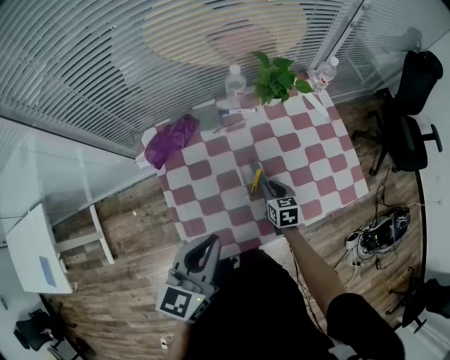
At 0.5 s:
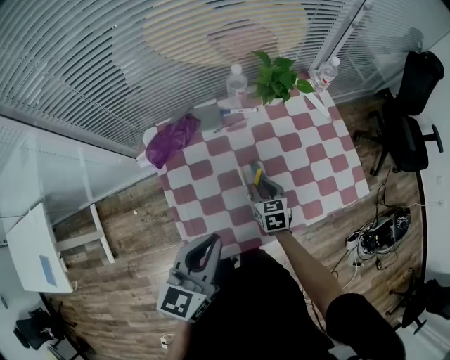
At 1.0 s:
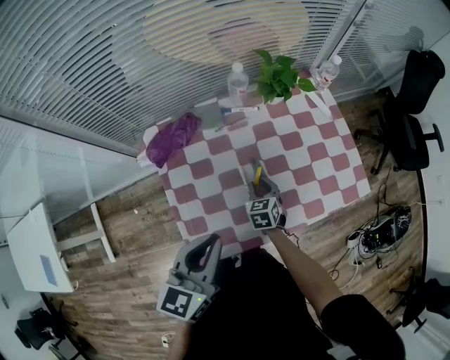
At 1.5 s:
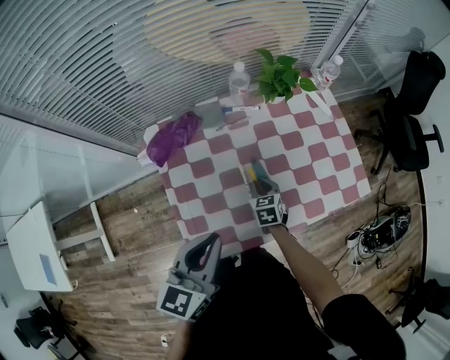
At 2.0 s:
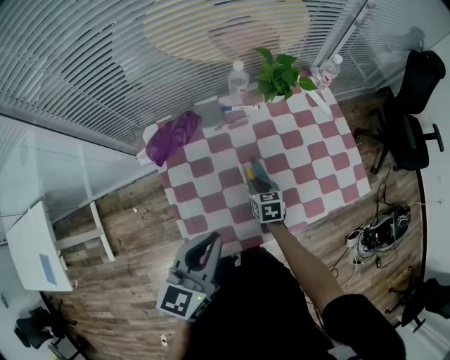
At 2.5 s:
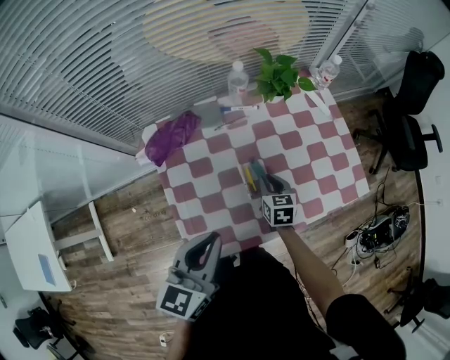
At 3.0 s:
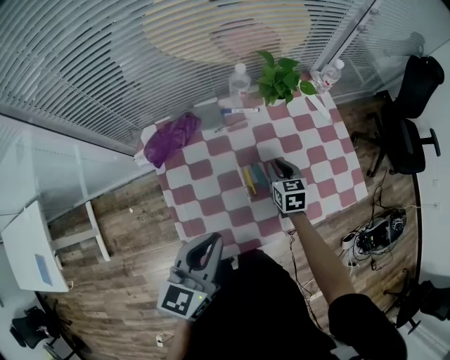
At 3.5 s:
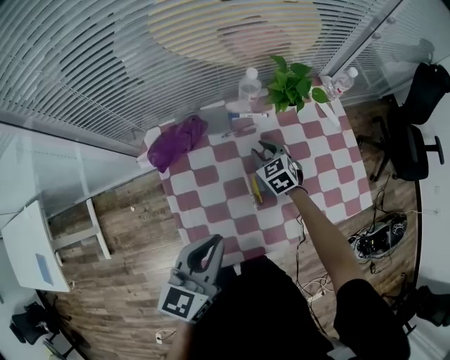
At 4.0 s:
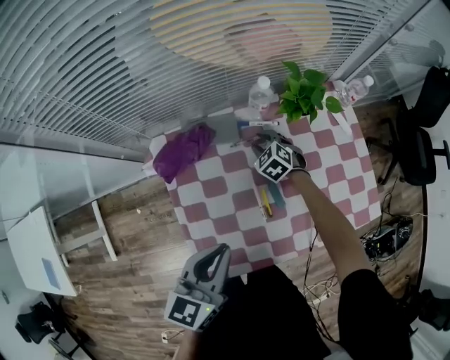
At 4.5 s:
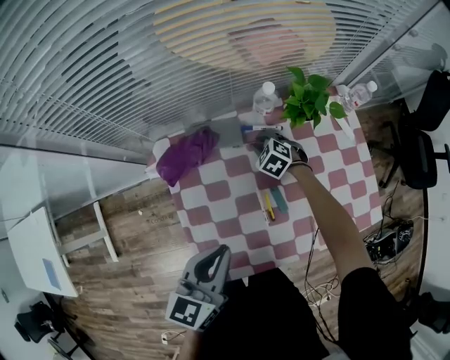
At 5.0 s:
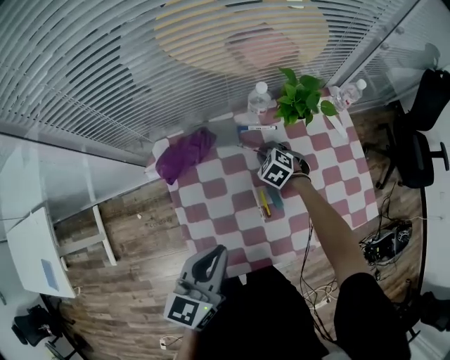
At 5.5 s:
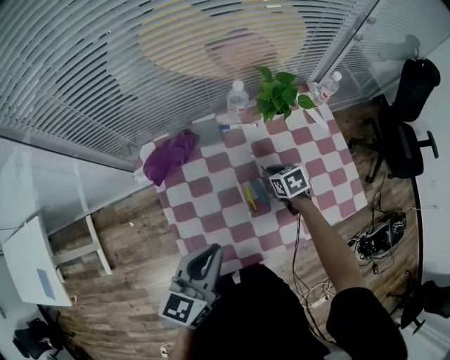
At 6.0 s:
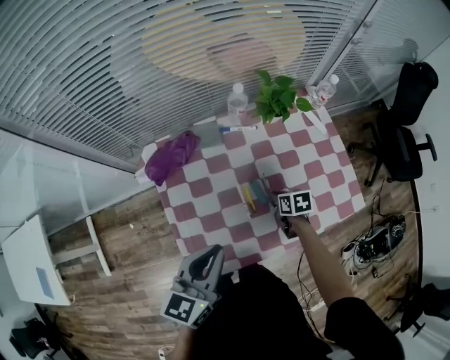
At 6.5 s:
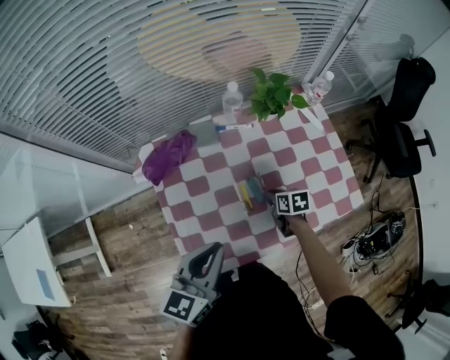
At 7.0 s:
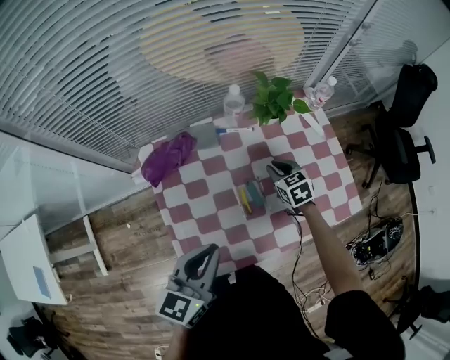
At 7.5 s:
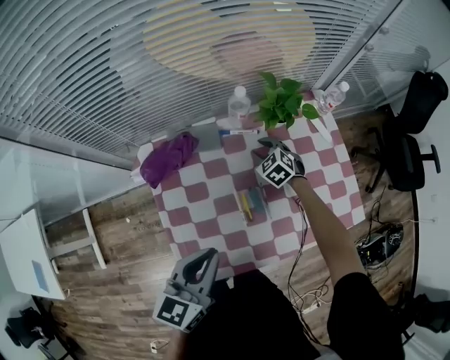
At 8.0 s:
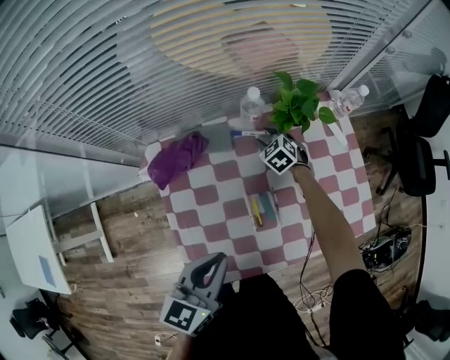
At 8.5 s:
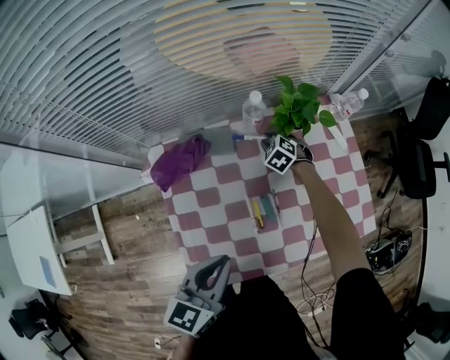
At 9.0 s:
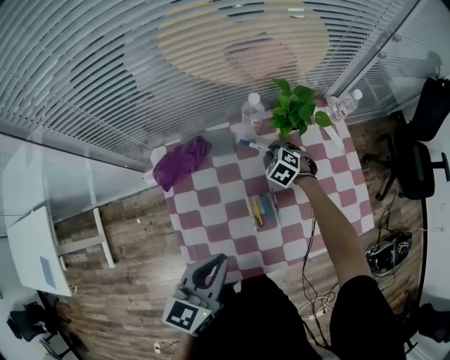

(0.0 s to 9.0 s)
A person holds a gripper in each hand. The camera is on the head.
0.0 s - 2.0 s: The right gripper heads to the left, covering approximately 5 cm.
2.0 s - 4.5 s: The right gripper shifts roughly 20 cm forward, and rolls counterclockwise, seen from behind, by about 50 degrees. The left gripper goes about 10 cm forward.
4.5 s - 7.0 s: The left gripper heads backward, covering roughly 5 cm. Meanwhile the right gripper shifts approximately 20 cm to the right, backward and upward, and swivels approximately 40 degrees.
7.0 s - 9.0 s: The right gripper goes roughly 15 cm forward, downward and to the left, rotates some 40 degrees, and opens, then closes again.

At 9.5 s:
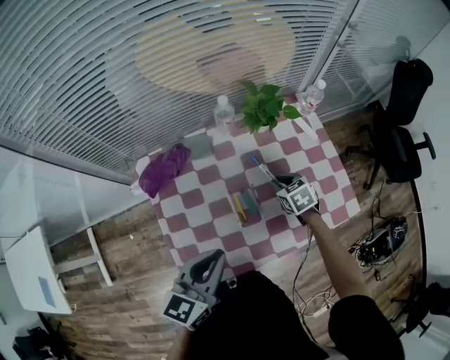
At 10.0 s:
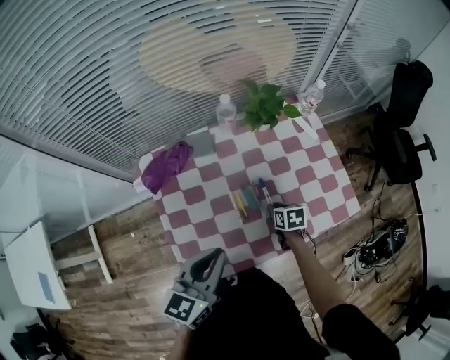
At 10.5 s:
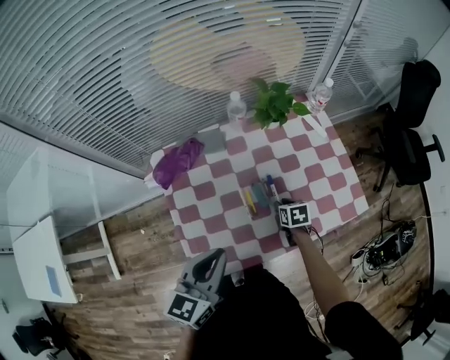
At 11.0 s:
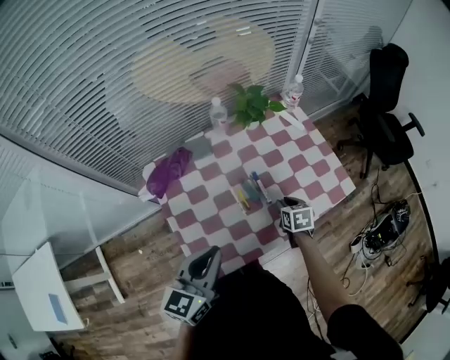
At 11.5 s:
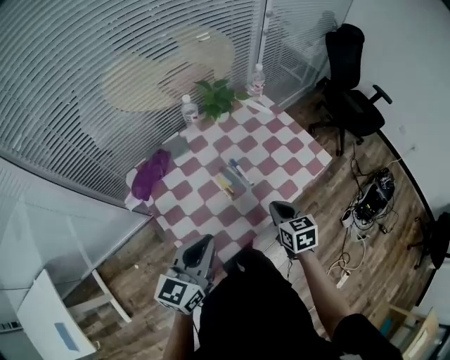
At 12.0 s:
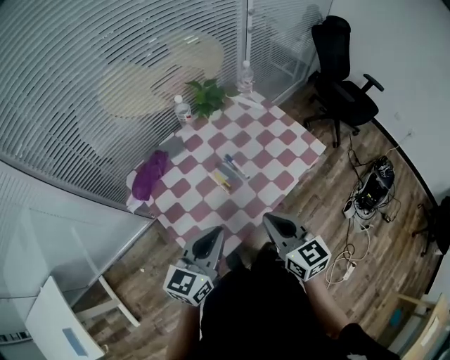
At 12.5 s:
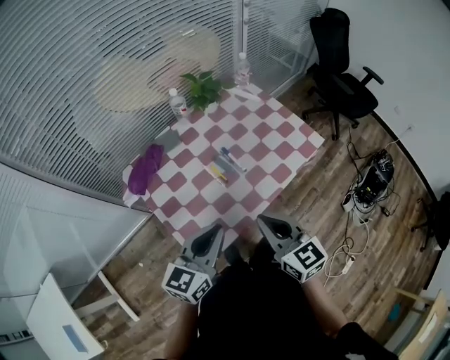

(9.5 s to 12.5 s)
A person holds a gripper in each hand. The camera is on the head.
9.5 s - 11.0 s: The left gripper shifts some 5 cm backward. The right gripper is displaced backward by some 15 cm, and rotates approximately 30 degrees.
11.0 s - 12.5 s: The left gripper goes approximately 5 cm backward. Meanwhile the right gripper is displaced upward and backward by roughly 30 cm, tips its fingers upward by about 40 degrees, and closes up.

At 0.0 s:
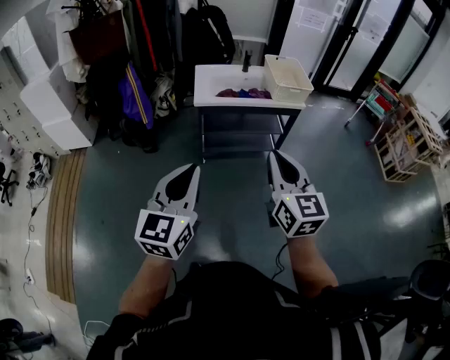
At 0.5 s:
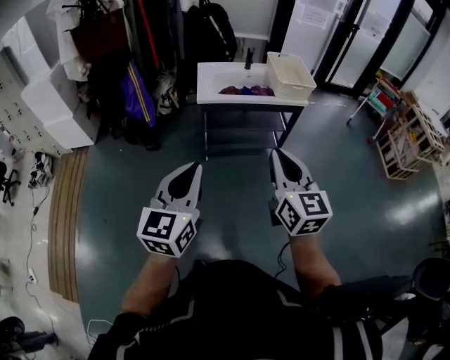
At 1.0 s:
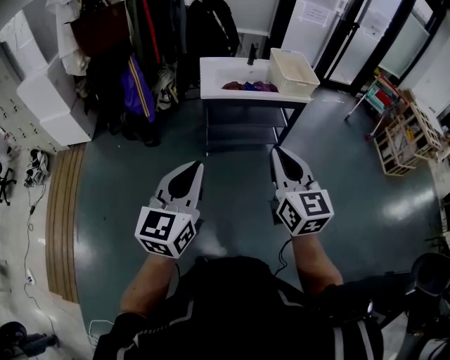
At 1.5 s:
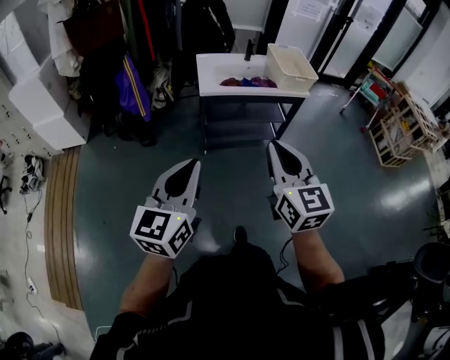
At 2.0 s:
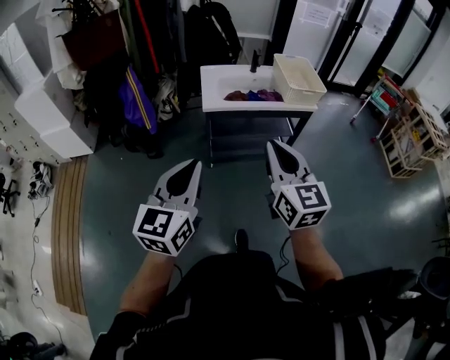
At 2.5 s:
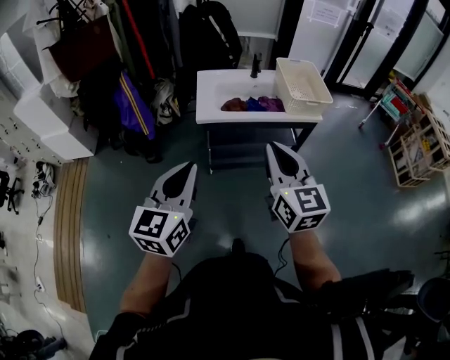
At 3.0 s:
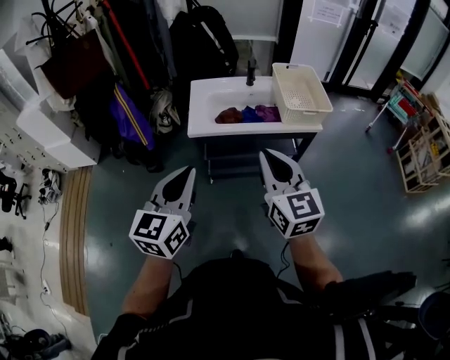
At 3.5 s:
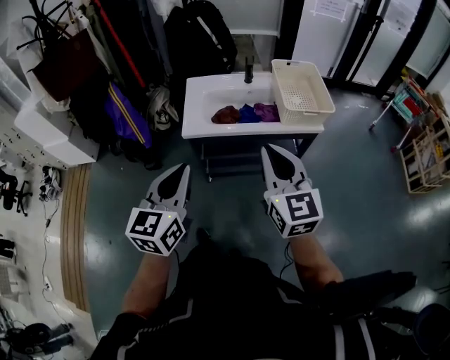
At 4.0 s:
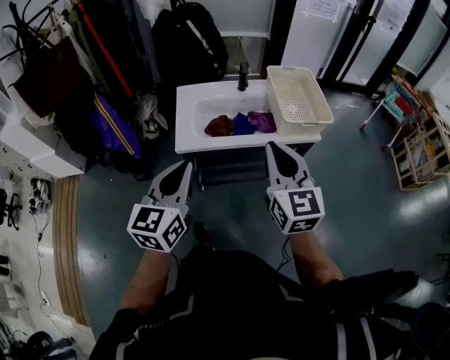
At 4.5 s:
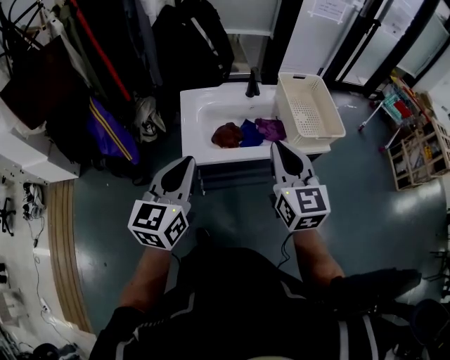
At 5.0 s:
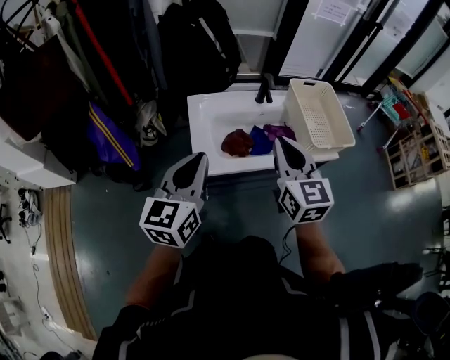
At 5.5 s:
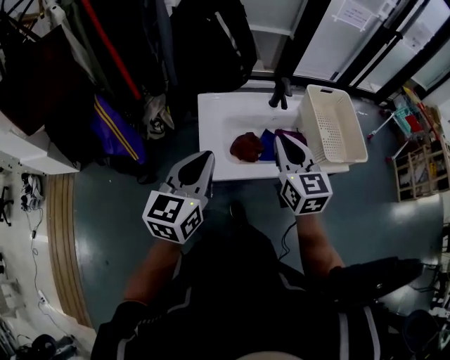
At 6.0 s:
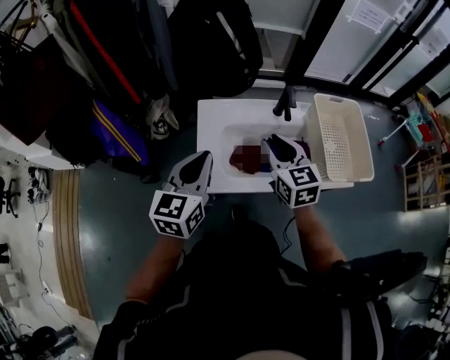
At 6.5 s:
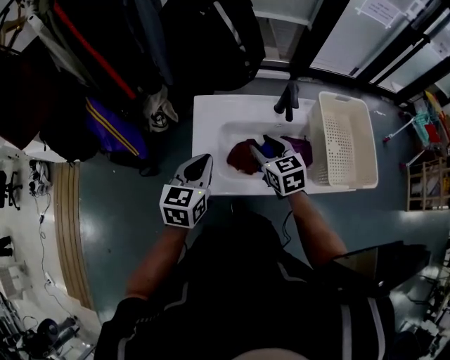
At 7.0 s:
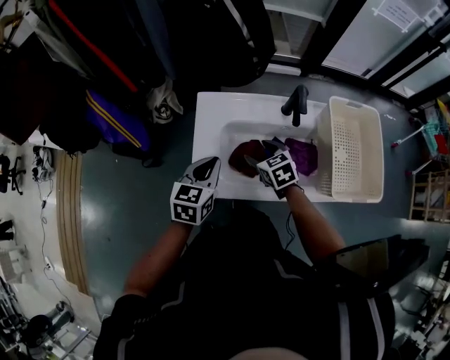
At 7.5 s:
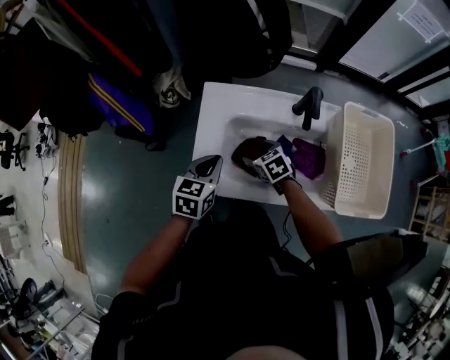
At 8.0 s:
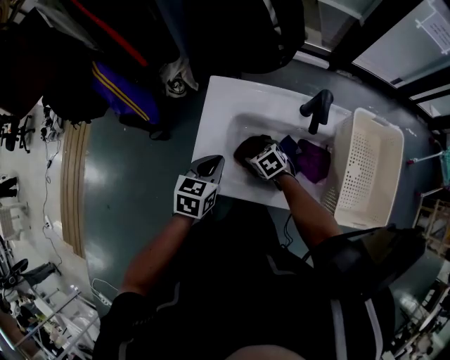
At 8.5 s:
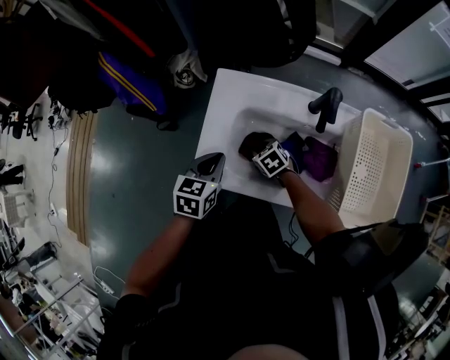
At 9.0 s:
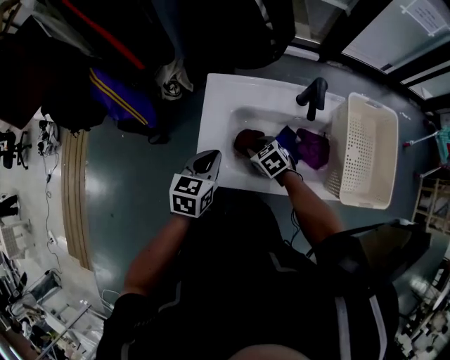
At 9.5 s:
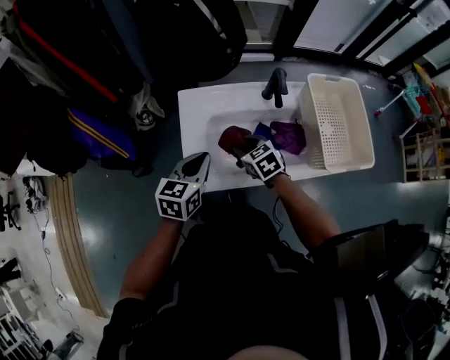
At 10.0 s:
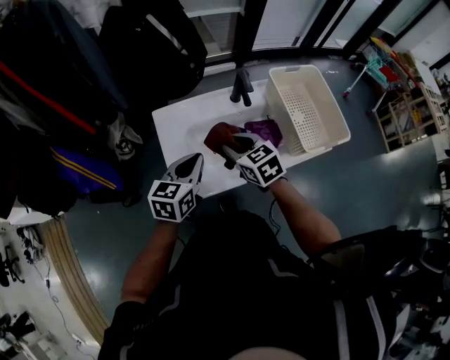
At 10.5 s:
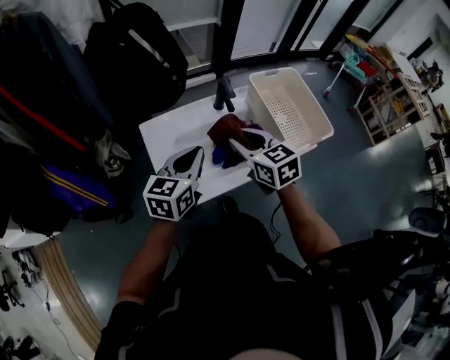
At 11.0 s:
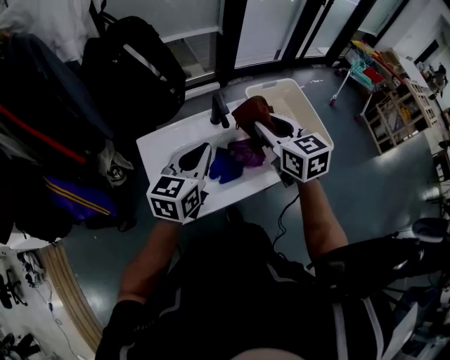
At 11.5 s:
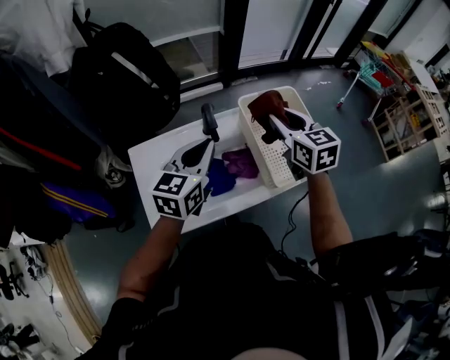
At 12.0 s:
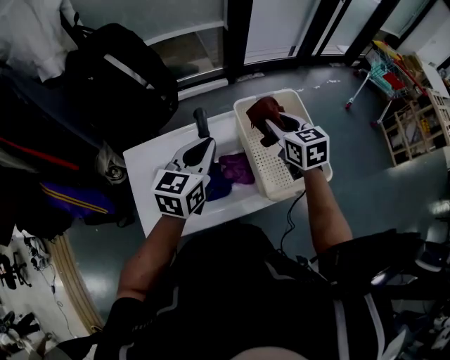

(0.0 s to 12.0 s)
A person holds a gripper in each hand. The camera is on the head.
0.0 s - 2.0 s: The grippers both shift forward and to the left by about 10 cm.
2.0 s - 4.0 s: The left gripper travels forward by about 30 cm. Meanwhile the right gripper heads forward and to the right, covering about 30 cm.
4.0 s - 6.0 s: The left gripper travels forward by some 25 cm, while the right gripper moves forward, to the left and downward, some 35 cm, and rotates roughly 20 degrees.
6.0 s - 8.0 s: The left gripper heads downward, covering some 20 cm, and rotates about 30 degrees. The right gripper is displaced downward by approximately 35 cm, points its fingers some 40 degrees further downward, and opens its fingers.
8.0 s - 10.0 s: The right gripper goes roughly 25 cm upward, turns by about 40 degrees, and closes its fingers. Meanwhile the left gripper goes some 10 cm upward, and swivels about 30 degrees.
10.0 s - 12.0 s: The right gripper heads to the right and forward, covering about 35 cm. The left gripper is displaced to the right, forward and upward by about 25 cm.

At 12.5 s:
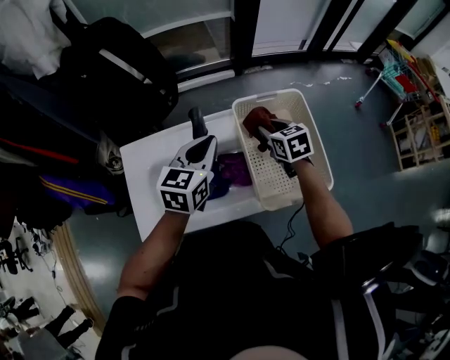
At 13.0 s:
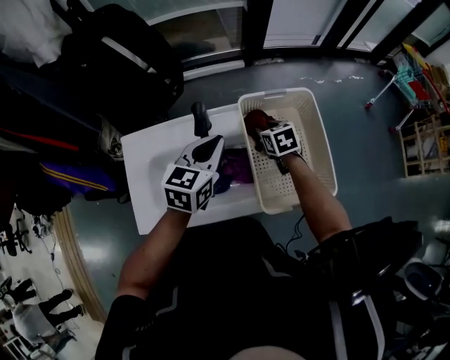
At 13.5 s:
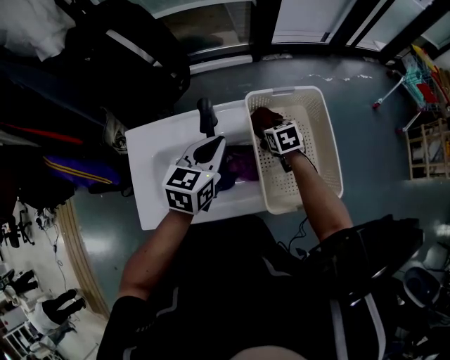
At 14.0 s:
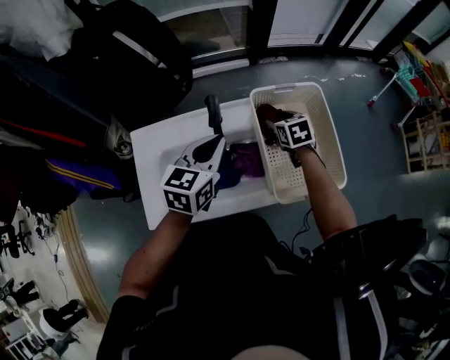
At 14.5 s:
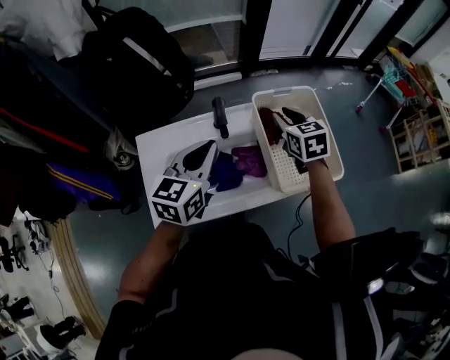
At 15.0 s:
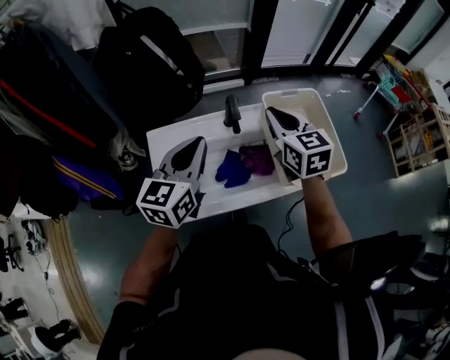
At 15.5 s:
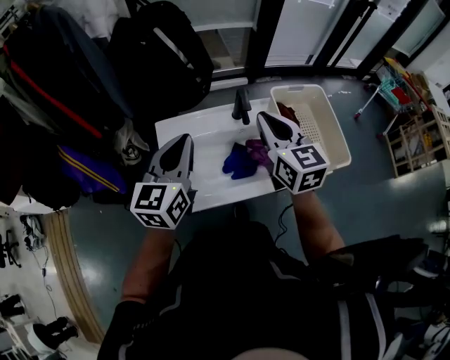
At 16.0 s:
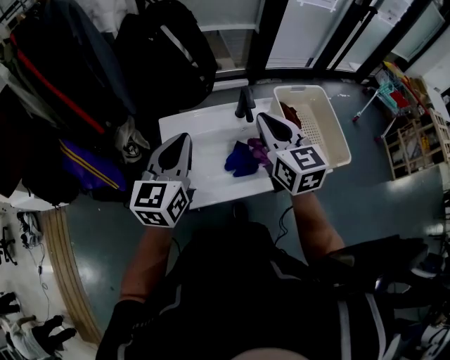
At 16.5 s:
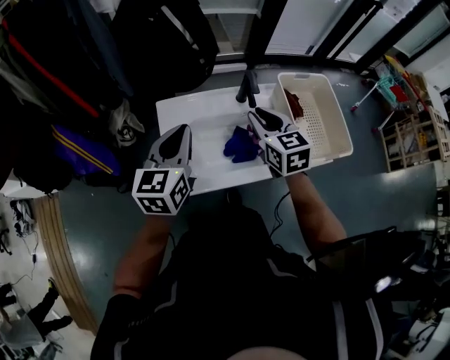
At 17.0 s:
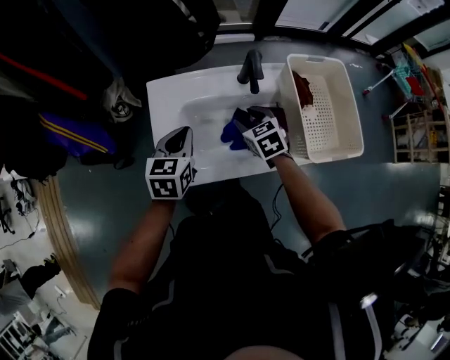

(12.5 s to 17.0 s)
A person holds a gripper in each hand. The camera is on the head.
12.5 s - 14.5 s: The right gripper shifts approximately 10 cm upward, and opens, then closes once more. Meanwhile the left gripper shifts about 10 cm backward and to the left.
14.5 s - 17.0 s: The left gripper shifts roughly 20 cm to the left and downward, and changes its angle by roughly 20 degrees; the right gripper moves to the left, downward and backward, about 25 cm, and swivels about 20 degrees.
